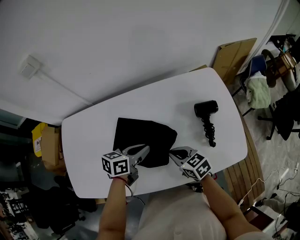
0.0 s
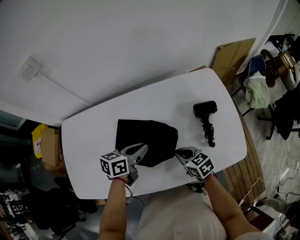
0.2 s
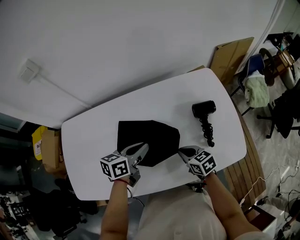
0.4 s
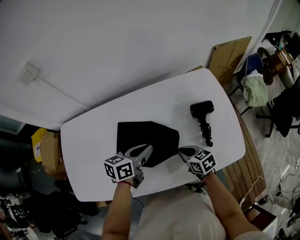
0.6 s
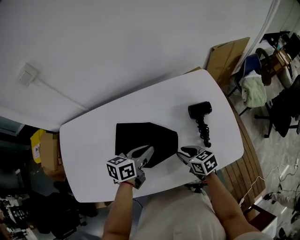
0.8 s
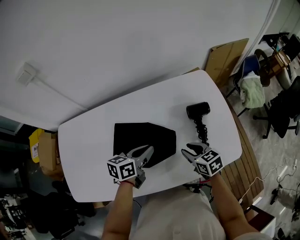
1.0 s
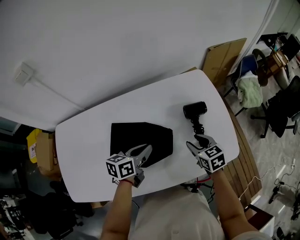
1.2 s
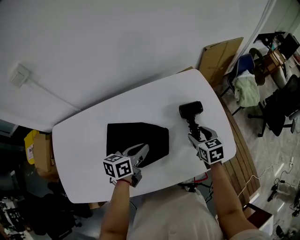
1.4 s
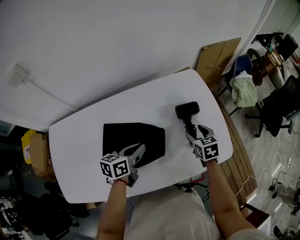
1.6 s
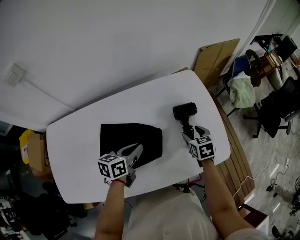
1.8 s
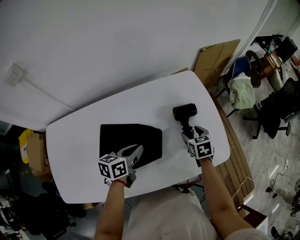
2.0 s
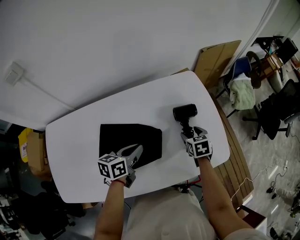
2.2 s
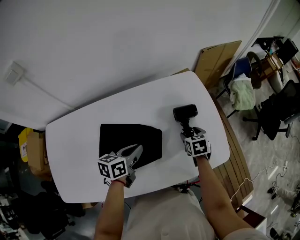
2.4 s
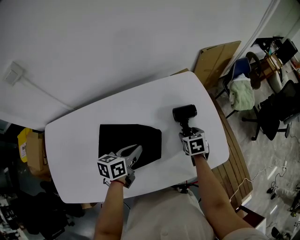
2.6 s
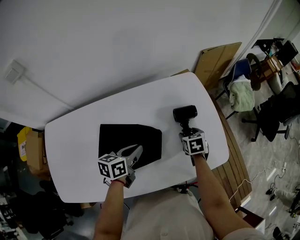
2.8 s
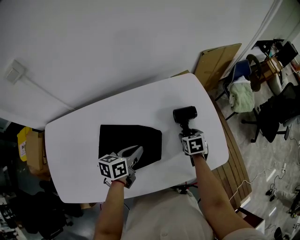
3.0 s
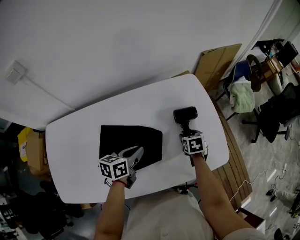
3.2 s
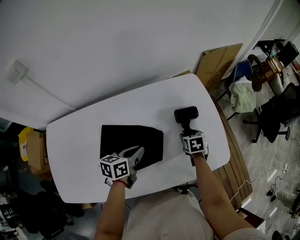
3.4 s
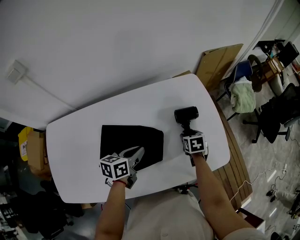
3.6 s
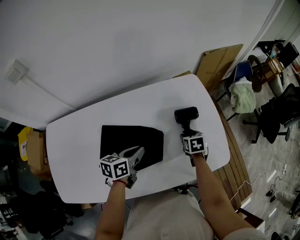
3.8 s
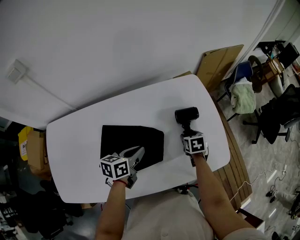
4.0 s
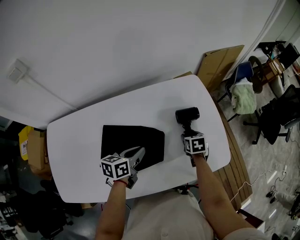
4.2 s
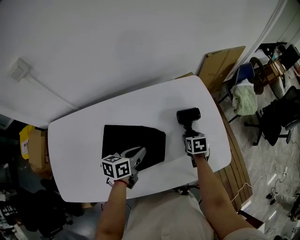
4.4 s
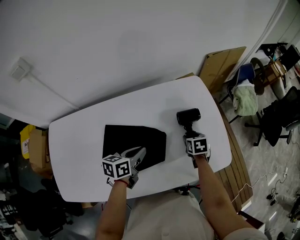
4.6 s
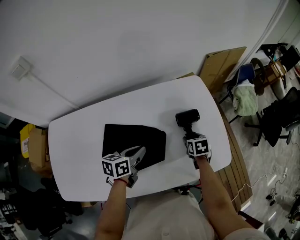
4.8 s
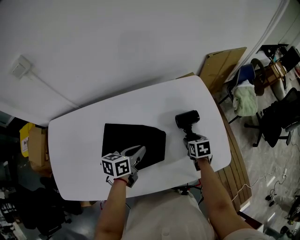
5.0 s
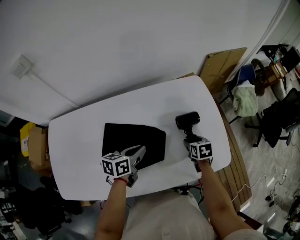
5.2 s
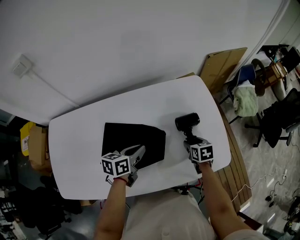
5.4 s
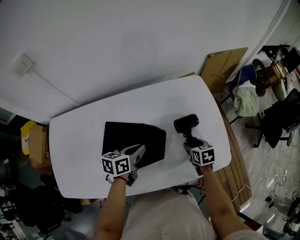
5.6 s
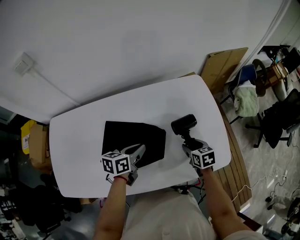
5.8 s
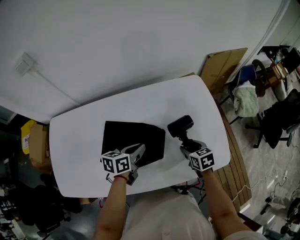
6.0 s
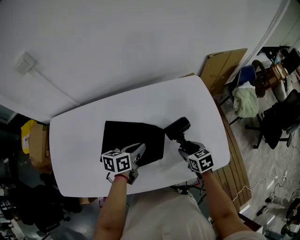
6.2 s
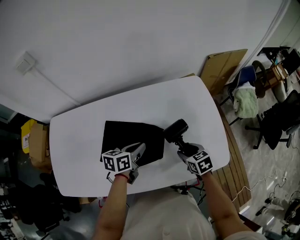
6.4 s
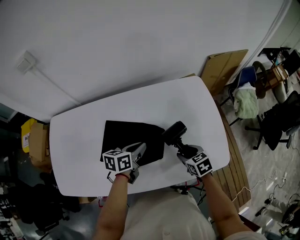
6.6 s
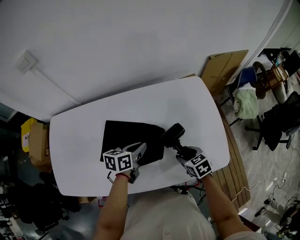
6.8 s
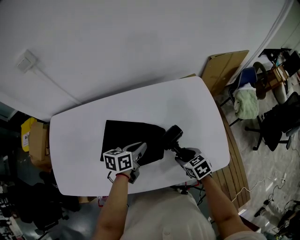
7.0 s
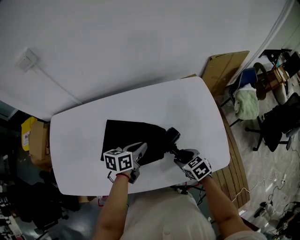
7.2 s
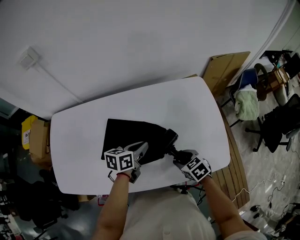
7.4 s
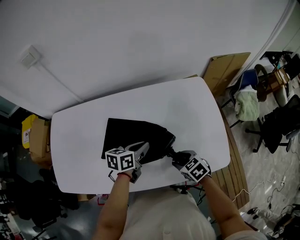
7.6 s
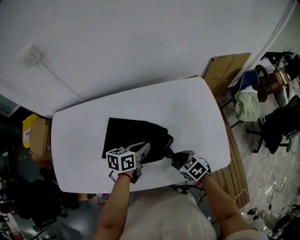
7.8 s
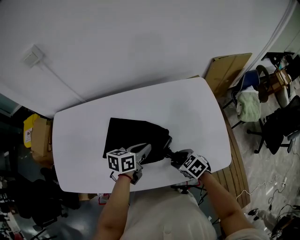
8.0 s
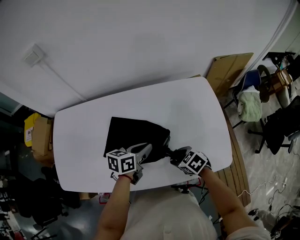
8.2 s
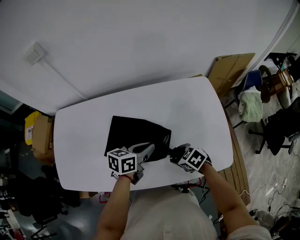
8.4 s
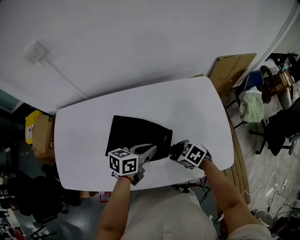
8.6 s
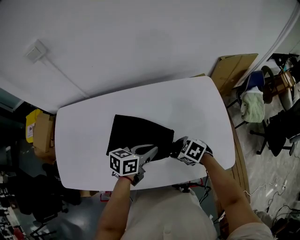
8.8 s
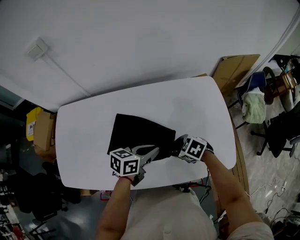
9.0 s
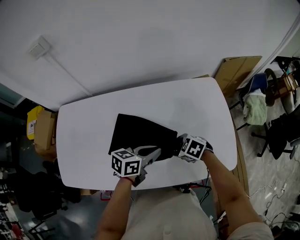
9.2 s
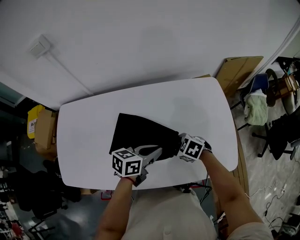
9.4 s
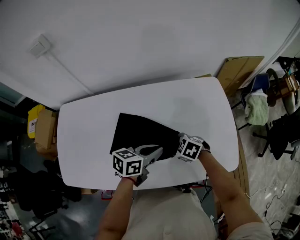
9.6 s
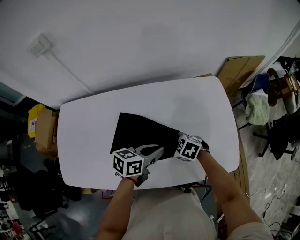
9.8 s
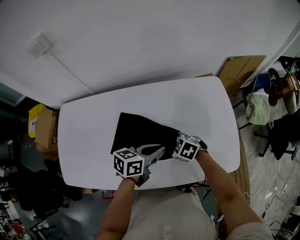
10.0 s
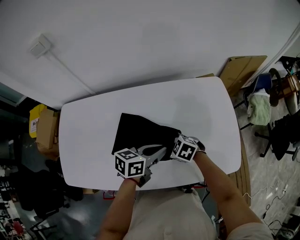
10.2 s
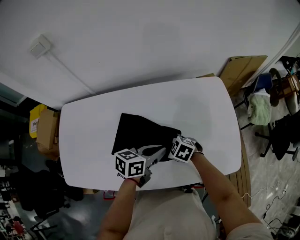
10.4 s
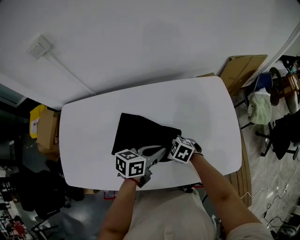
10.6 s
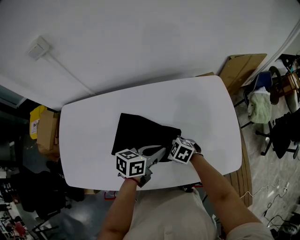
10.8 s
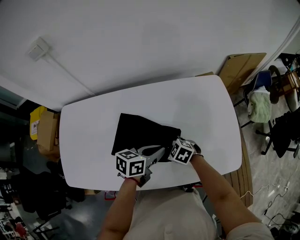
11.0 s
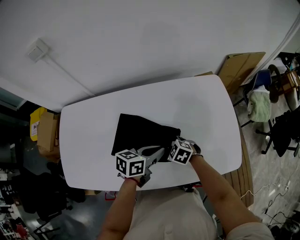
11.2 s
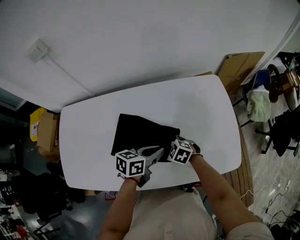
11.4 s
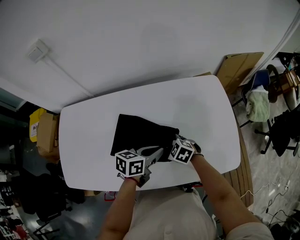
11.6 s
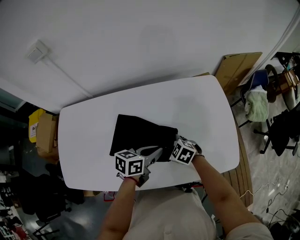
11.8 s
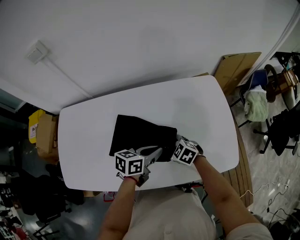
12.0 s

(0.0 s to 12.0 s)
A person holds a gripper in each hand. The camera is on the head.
0.0 s - 1.6 s: The left gripper goes some 5 cm to the right; the right gripper heads to the right and forward, covering some 25 cm, swivels approximately 40 degrees, and opens its fingers.
1.6 s - 3.0 s: The right gripper goes approximately 5 cm downward.
3.0 s - 4.4 s: The grippers make only small movements.
4.4 s - 6.0 s: The right gripper moves backward, roughly 5 cm.
6.0 s - 7.6 s: The right gripper is displaced backward and to the left by some 10 cm, and changes its angle by roughly 30 degrees.
7.6 s - 9.0 s: The right gripper changes place by some 5 cm, and turns by approximately 30 degrees.
9.0 s - 10.4 s: The right gripper moves approximately 10 cm.
10.4 s - 12.0 s: The grippers stay close to where they were, moving slightly.

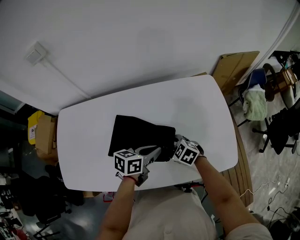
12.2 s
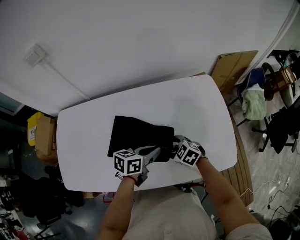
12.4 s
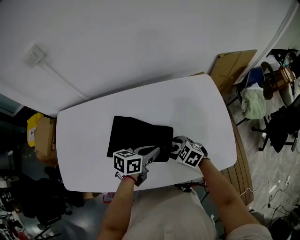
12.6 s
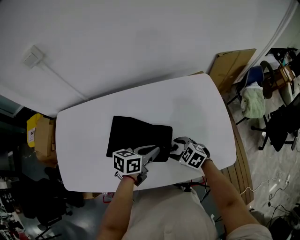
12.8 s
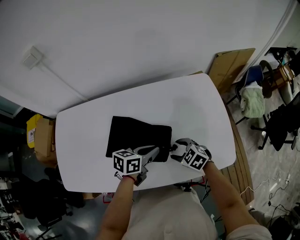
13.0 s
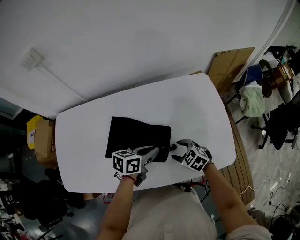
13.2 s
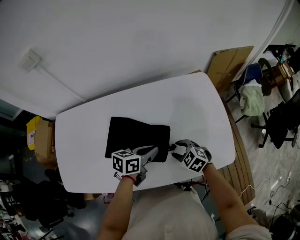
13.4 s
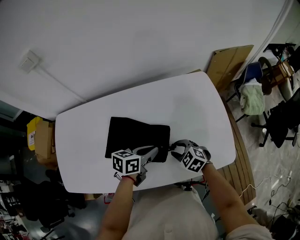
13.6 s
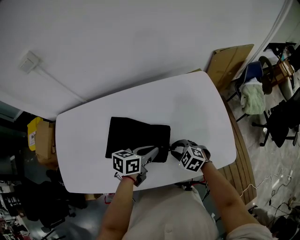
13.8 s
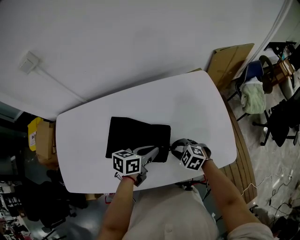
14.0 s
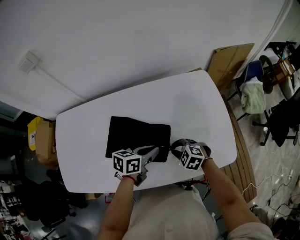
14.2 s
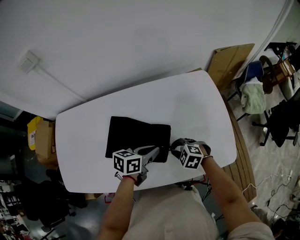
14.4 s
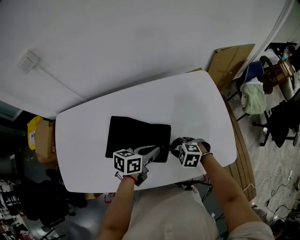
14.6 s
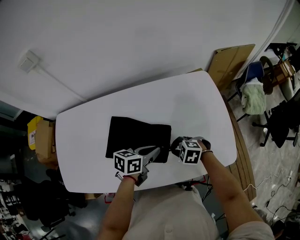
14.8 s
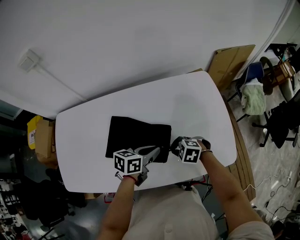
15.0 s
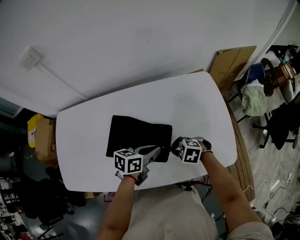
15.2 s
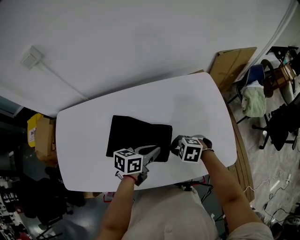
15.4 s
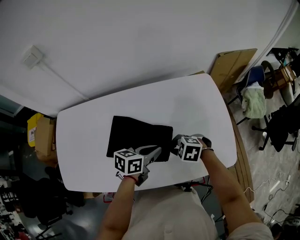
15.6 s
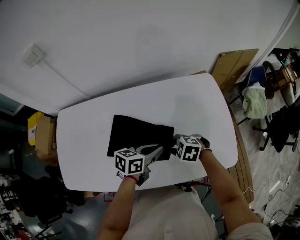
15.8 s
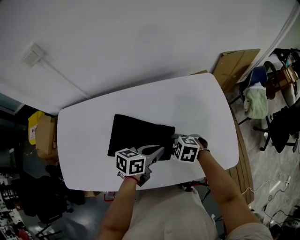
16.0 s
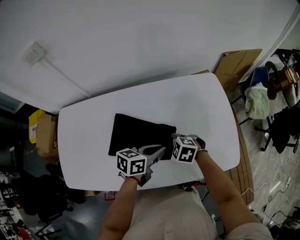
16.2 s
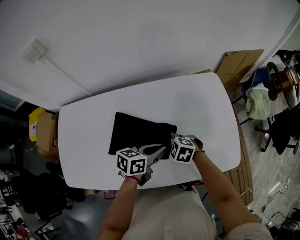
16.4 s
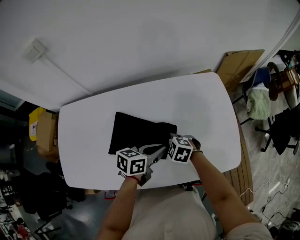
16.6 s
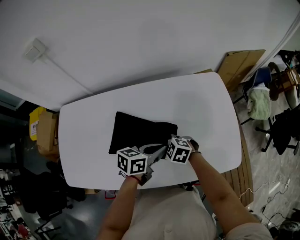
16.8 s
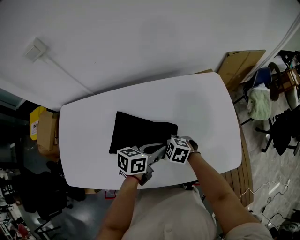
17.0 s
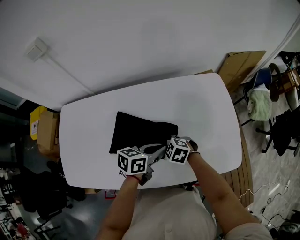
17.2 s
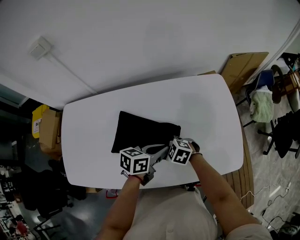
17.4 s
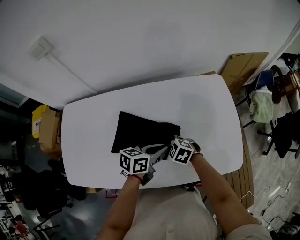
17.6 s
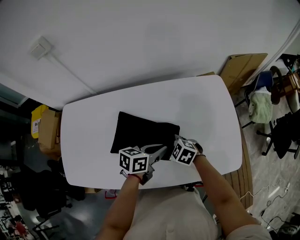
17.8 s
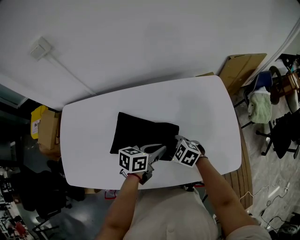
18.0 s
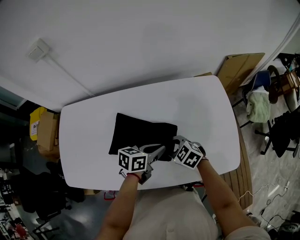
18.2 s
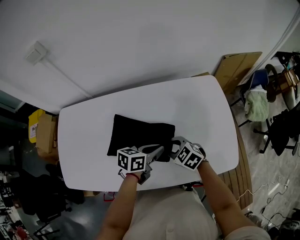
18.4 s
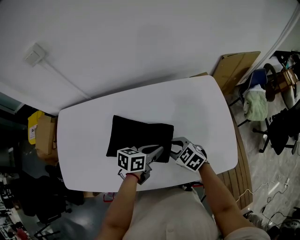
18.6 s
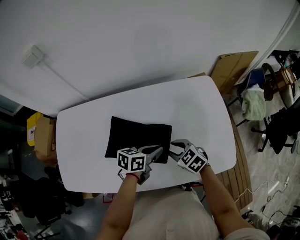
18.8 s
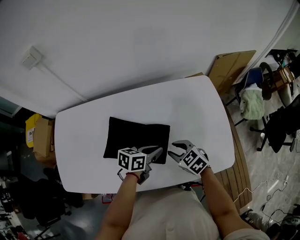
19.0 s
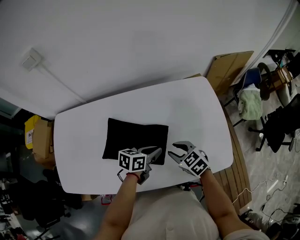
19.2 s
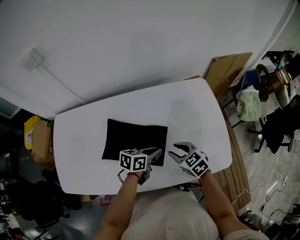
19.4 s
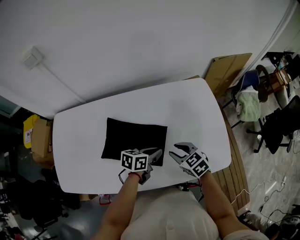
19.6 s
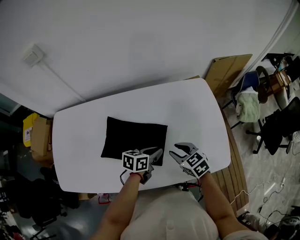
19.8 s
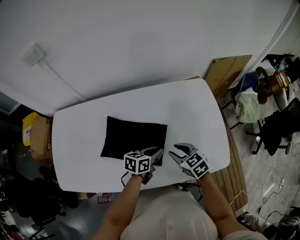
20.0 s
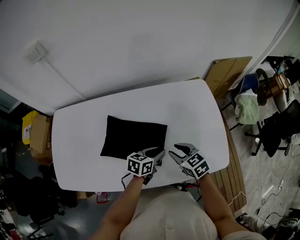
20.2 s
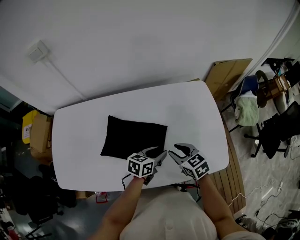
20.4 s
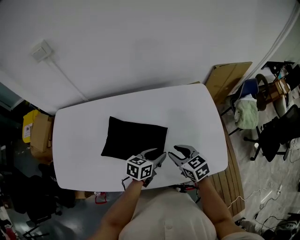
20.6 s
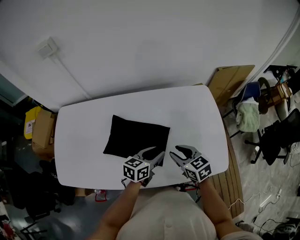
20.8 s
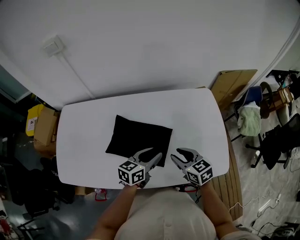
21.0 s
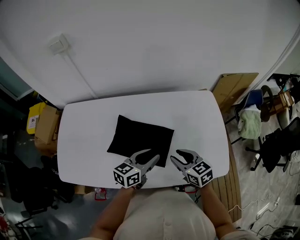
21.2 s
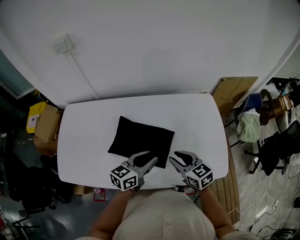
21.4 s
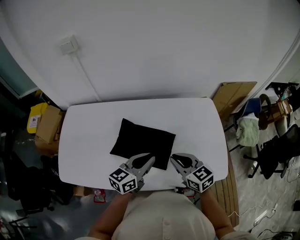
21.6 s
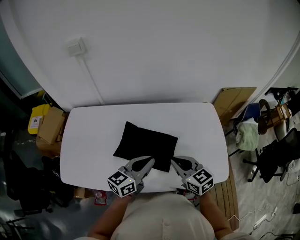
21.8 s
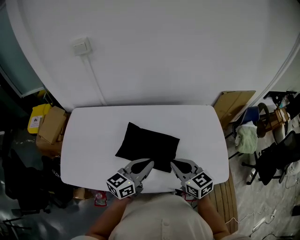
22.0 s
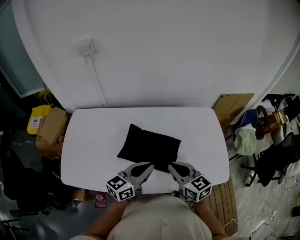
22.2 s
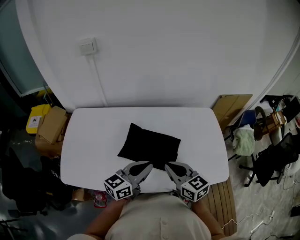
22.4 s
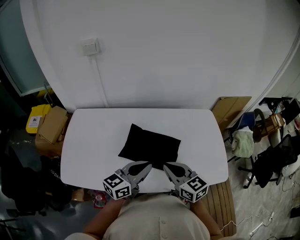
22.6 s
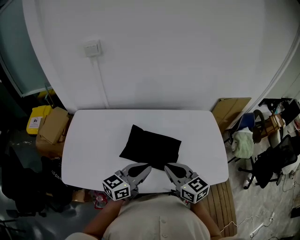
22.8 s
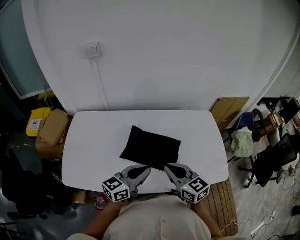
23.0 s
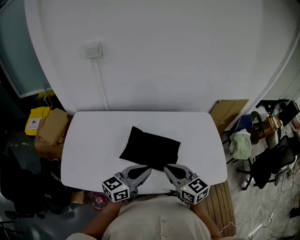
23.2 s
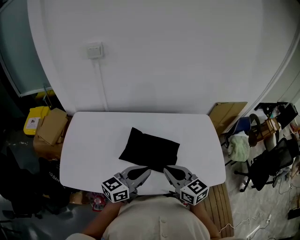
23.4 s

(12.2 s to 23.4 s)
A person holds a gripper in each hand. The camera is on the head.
12.2 s - 13.8 s: The right gripper shifts by roughly 5 cm, and closes.
13.8 s - 15.4 s: There are only small adjustments of the grippers.
15.4 s - 17.0 s: The right gripper changes place by approximately 10 cm.
17.0 s - 18.6 s: The right gripper changes place by about 10 cm.
18.6 s - 20.2 s: The right gripper heads to the right, covering roughly 5 cm. The left gripper ends up roughly 5 cm from where it was.
20.2 s - 21.8 s: The two grippers go approximately 20 cm upward and to the left. The right gripper closes its fingers. Meanwhile the left gripper swivels approximately 30 degrees.
21.8 s - 23.4 s: The left gripper travels backward and to the left by some 10 cm; the right gripper goes some 10 cm to the left and backward.

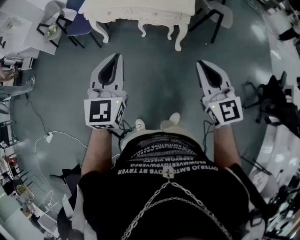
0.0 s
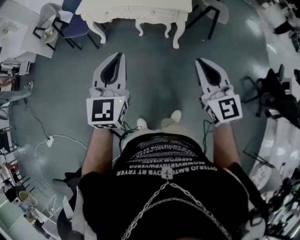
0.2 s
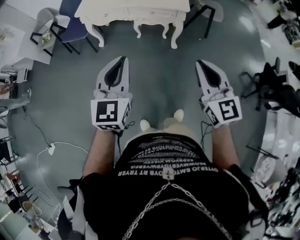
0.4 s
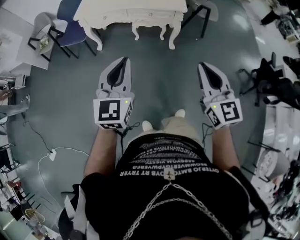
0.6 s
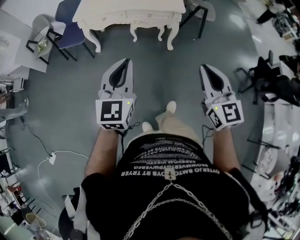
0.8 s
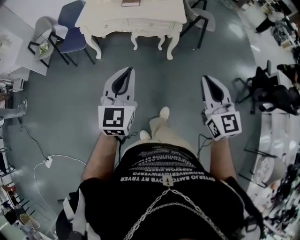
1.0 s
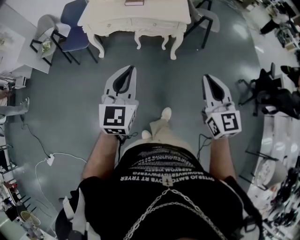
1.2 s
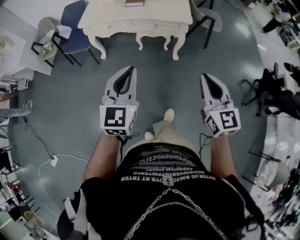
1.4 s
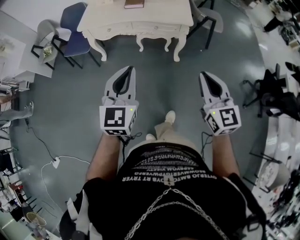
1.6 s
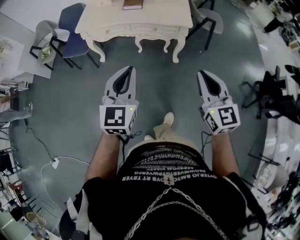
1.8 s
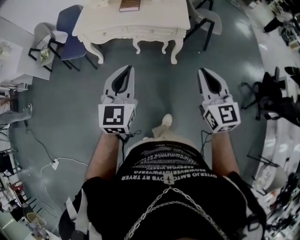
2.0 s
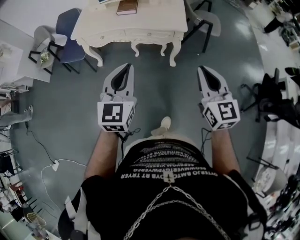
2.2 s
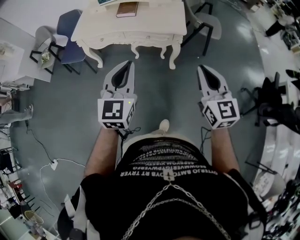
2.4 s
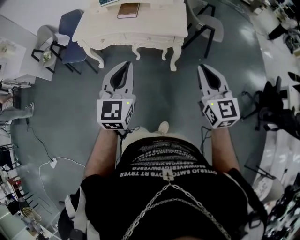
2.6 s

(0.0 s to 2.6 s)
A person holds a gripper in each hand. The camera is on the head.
0.0 s - 1.2 s: The left gripper goes about 10 cm to the left. Meanwhile the right gripper travels to the left and backward by approximately 10 cm.
1.2 s - 2.6 s: The grippers both shift forward and to the right by approximately 20 cm.
